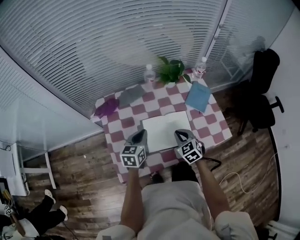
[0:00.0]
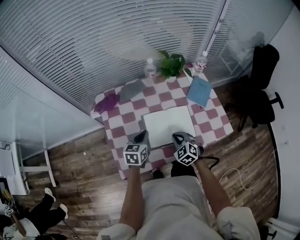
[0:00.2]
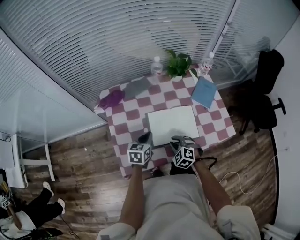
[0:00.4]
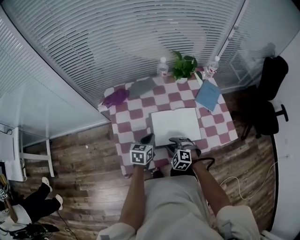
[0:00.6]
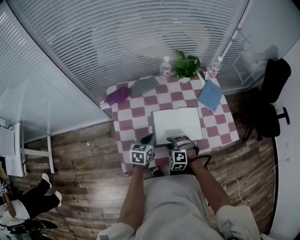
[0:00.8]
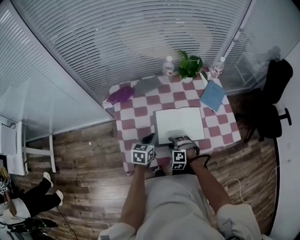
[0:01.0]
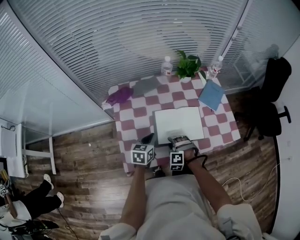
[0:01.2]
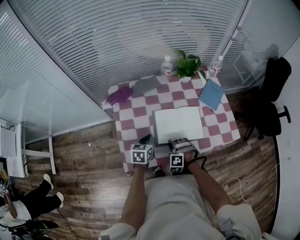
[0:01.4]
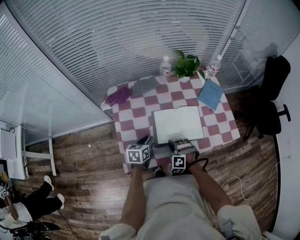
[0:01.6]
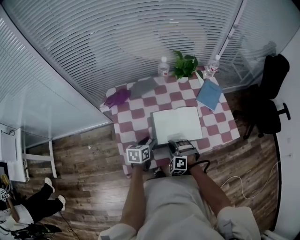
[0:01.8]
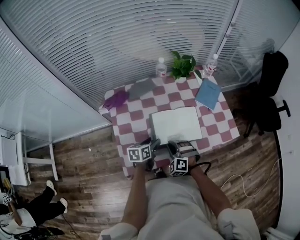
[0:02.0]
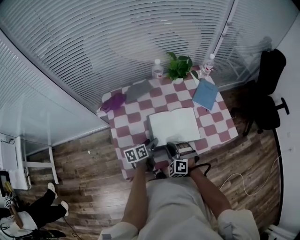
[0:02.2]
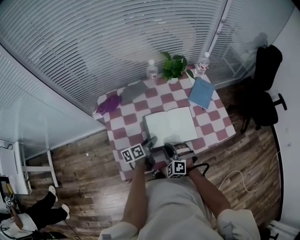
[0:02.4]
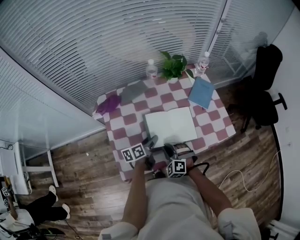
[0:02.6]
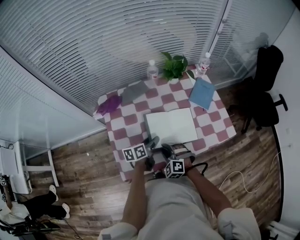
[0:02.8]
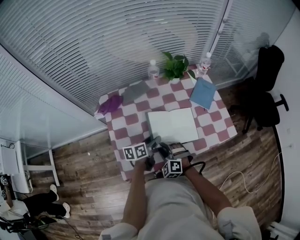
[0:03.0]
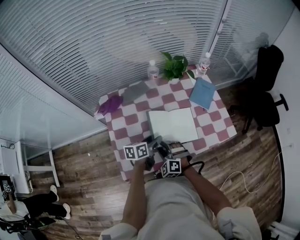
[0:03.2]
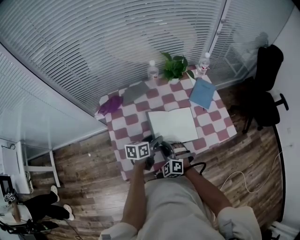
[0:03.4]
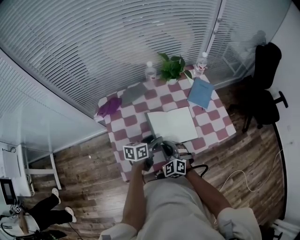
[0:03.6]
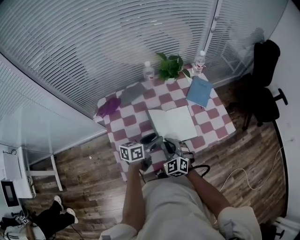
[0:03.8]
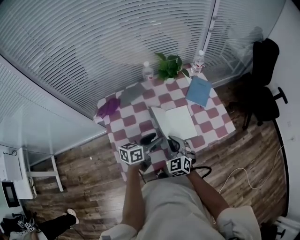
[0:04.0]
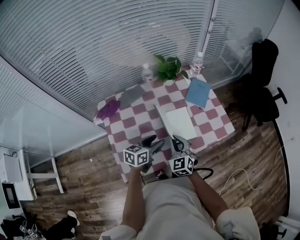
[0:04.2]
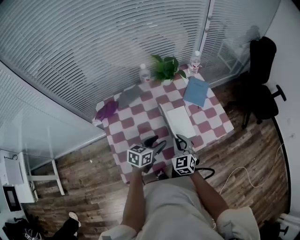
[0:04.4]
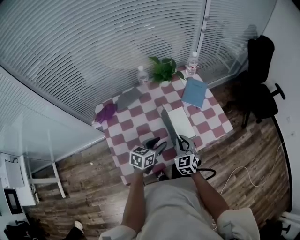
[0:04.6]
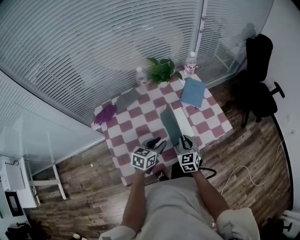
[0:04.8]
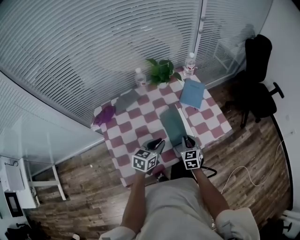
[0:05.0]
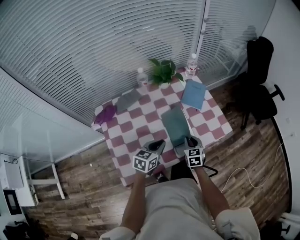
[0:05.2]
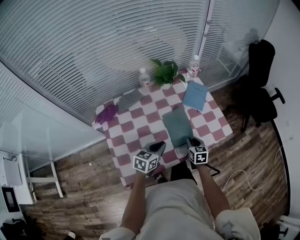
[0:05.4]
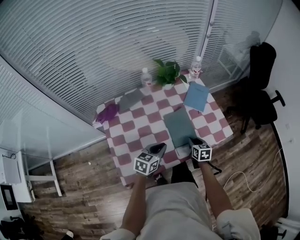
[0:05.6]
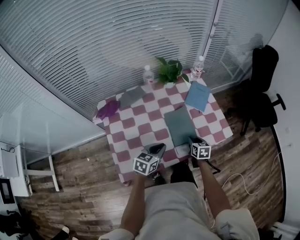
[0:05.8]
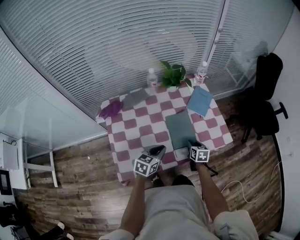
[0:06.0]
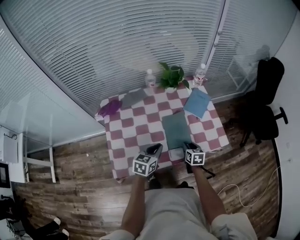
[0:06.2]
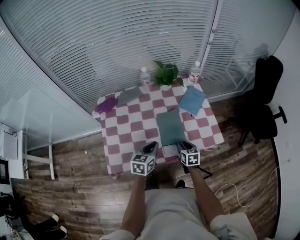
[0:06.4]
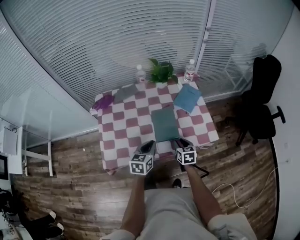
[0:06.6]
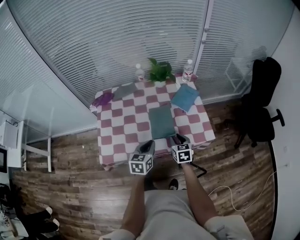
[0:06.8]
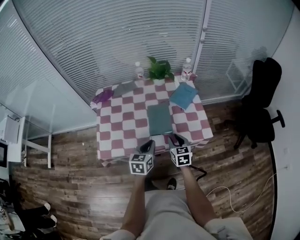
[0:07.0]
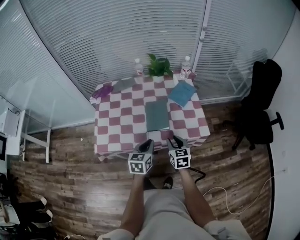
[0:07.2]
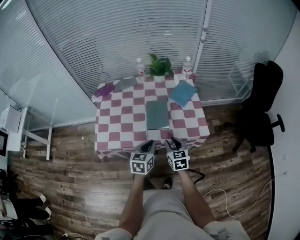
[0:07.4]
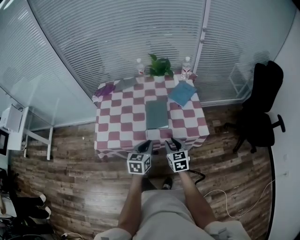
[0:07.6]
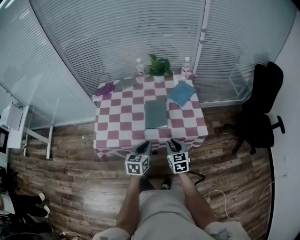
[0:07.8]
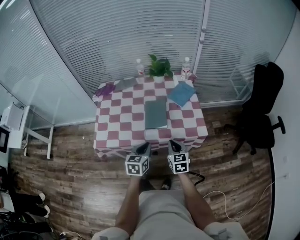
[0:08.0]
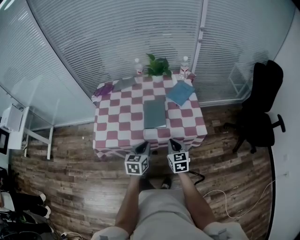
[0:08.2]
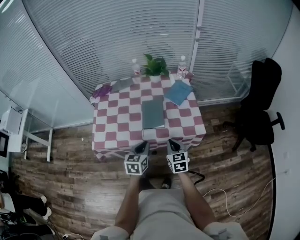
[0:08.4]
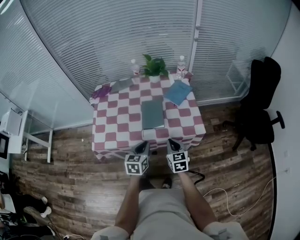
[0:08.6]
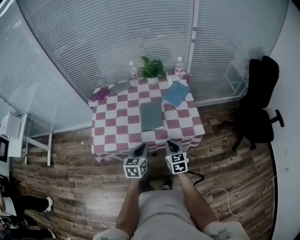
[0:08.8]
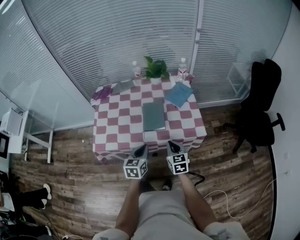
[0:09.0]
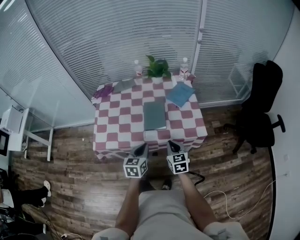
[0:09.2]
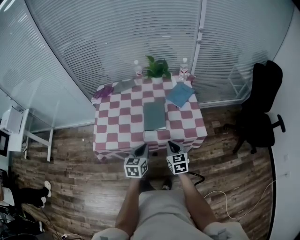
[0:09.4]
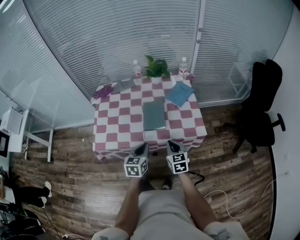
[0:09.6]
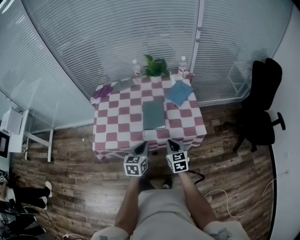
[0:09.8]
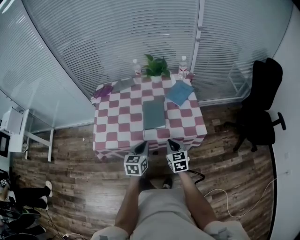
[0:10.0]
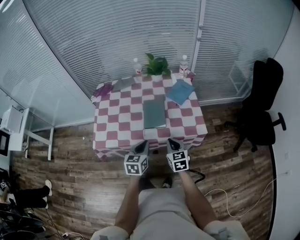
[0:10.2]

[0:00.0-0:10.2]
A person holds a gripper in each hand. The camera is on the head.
0.0 to 1.4 s: The left gripper heads downward and backward, covering roughly 10 cm. Meanwhile the right gripper is displaced downward, to the left and backward by some 20 cm, rolls counterclockwise, seen from behind, by about 60 degrees, and opens, then closes again.
1.4 to 3.0 s: The right gripper travels upward by roughly 5 cm, and rotates roughly 20 degrees; the left gripper heads to the right, covering roughly 5 cm, rotates approximately 30 degrees, and opens its fingers.
3.0 to 4.4 s: The left gripper heads to the right and upward, covering about 10 cm, and turns by about 30 degrees. The right gripper moves to the right, upward and forward, about 15 cm, rotates around the line of its fingers by approximately 40 degrees, clockwise from behind, and closes up.
4.4 to 5.8 s: The left gripper closes; the right gripper shifts about 15 cm downward, to the right and forward, rotates approximately 40 degrees, and opens its fingers.
5.8 to 7.2 s: The left gripper goes roughly 15 cm to the right and backward, and turns by approximately 30 degrees. The right gripper heads upward, backward and to the right, covering roughly 15 cm, and changes its angle by about 30 degrees.
7.2 to 8.8 s: The right gripper closes its fingers.
8.8 to 10.2 s: Both grippers stay about where they are.

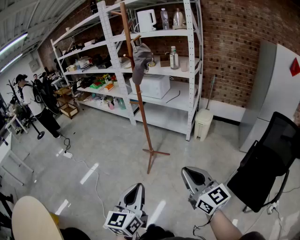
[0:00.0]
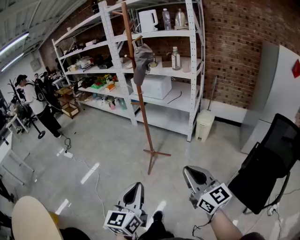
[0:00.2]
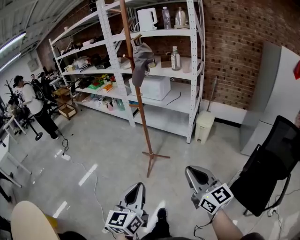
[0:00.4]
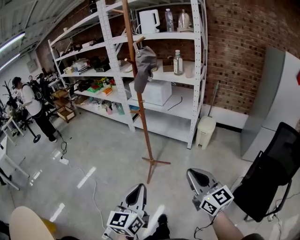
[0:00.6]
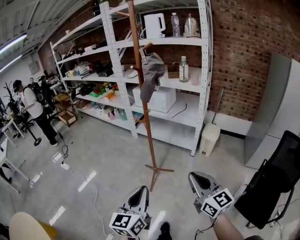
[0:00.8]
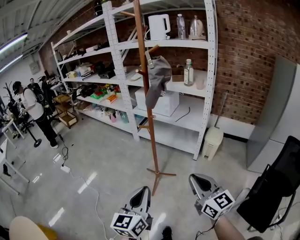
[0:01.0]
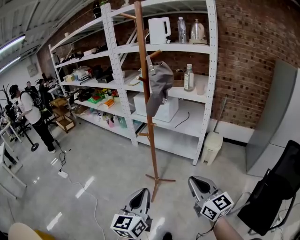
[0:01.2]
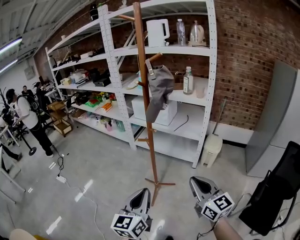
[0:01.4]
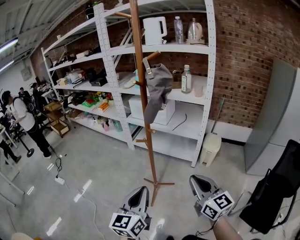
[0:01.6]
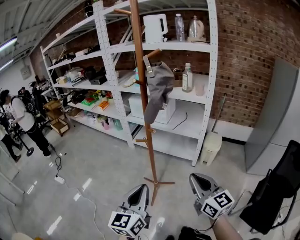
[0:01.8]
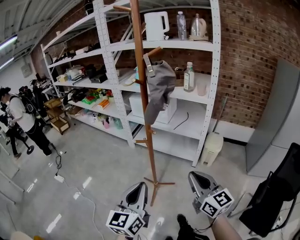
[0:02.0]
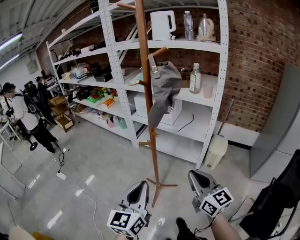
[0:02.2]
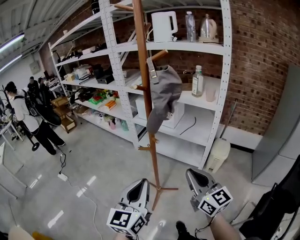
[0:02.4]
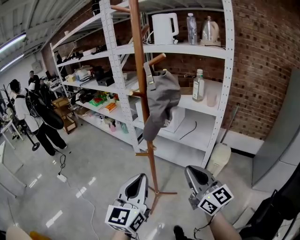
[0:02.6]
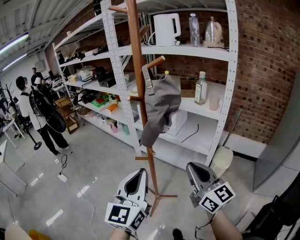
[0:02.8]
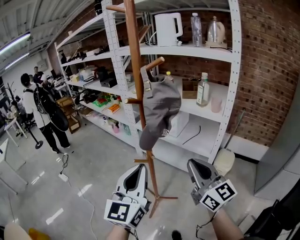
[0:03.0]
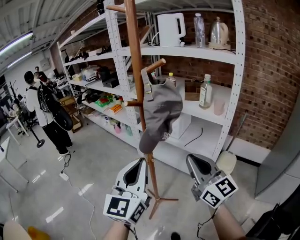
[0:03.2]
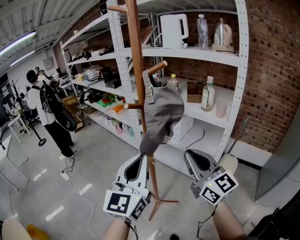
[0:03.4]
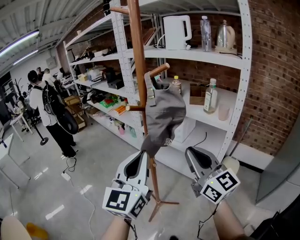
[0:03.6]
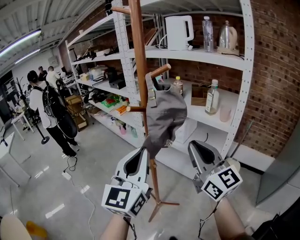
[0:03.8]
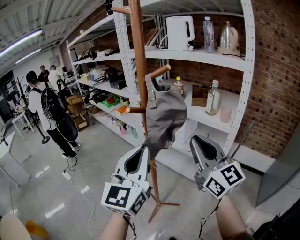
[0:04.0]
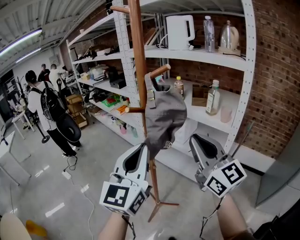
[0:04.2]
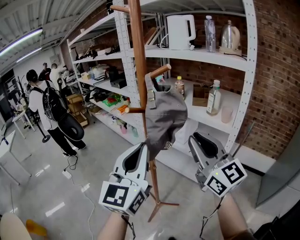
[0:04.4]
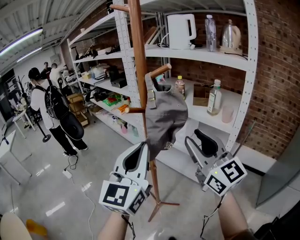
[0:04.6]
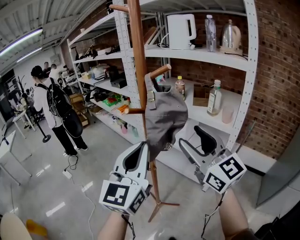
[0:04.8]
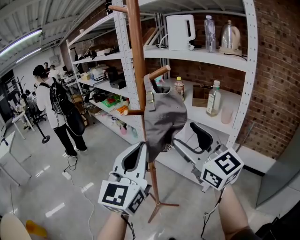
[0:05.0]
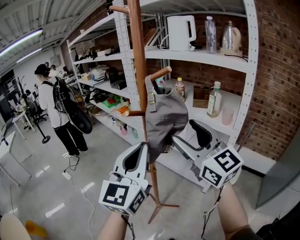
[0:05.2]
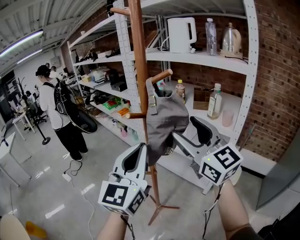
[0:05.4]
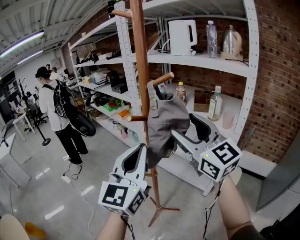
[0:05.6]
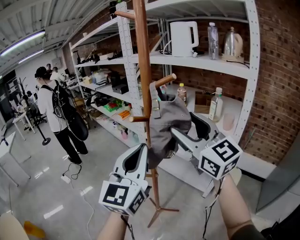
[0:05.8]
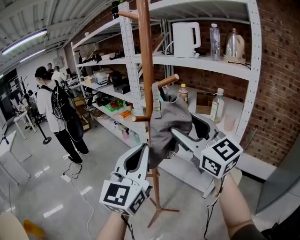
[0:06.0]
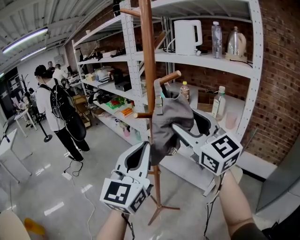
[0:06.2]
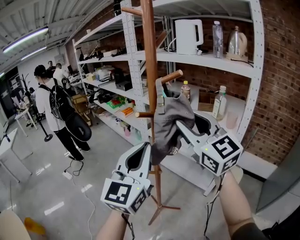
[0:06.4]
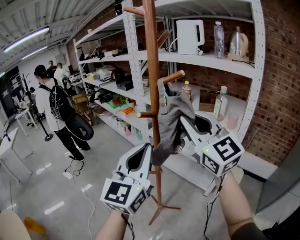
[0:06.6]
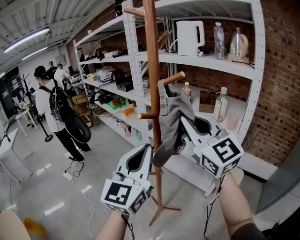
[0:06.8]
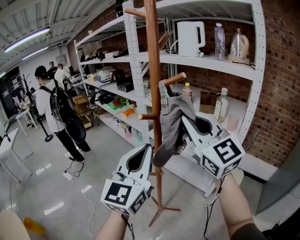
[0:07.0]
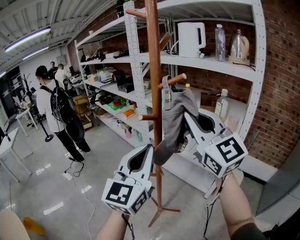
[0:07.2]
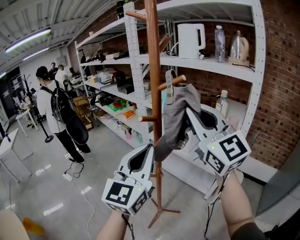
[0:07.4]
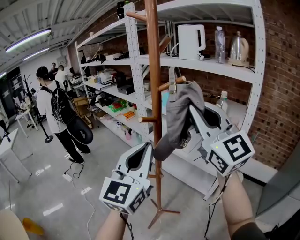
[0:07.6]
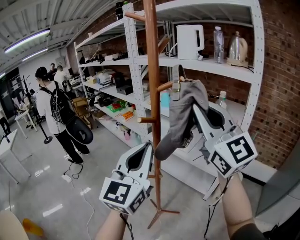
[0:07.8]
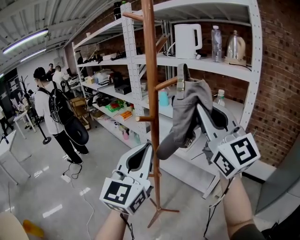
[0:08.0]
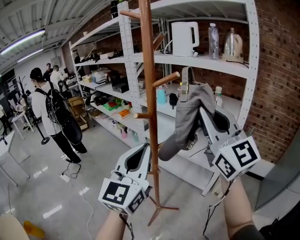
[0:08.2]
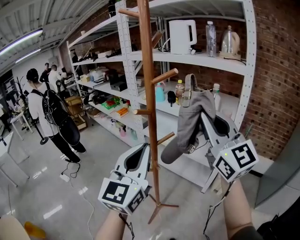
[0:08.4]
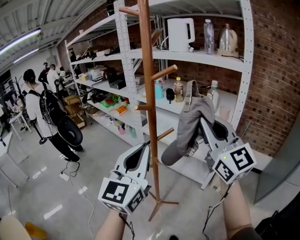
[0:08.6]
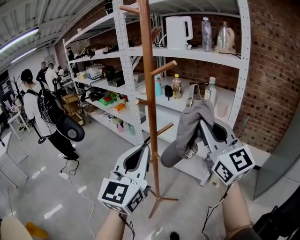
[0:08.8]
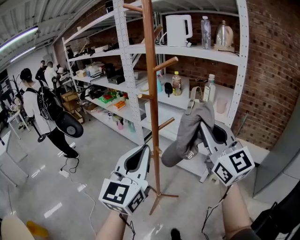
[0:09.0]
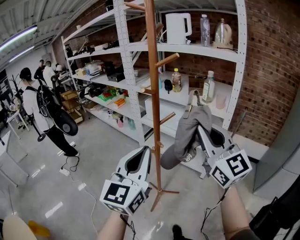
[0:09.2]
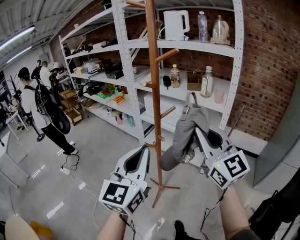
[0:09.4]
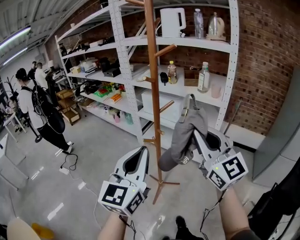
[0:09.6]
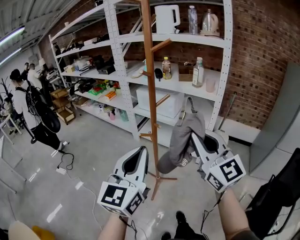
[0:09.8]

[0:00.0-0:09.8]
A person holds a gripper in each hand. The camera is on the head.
0.0 to 1.4 s: Both grippers move forward, approximately 30 cm.
1.4 to 2.8 s: The right gripper moves forward, about 20 cm, while the left gripper heads forward and upward, covering about 20 cm.
2.8 to 4.2 s: Both grippers travel together upward and forward, about 15 cm.
4.2 to 5.6 s: The right gripper shifts some 10 cm upward and forward, and opens its fingers.
5.6 to 7.0 s: The right gripper closes up.
7.0 to 8.4 s: The right gripper moves to the right, roughly 5 cm.
8.4 to 9.8 s: The grippers both shift backward and downward by about 20 cm.

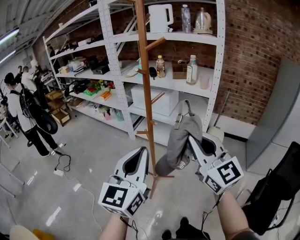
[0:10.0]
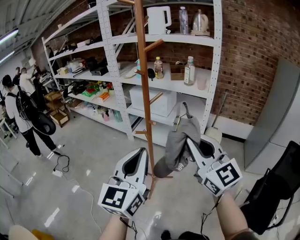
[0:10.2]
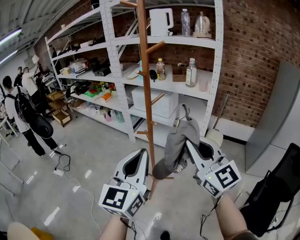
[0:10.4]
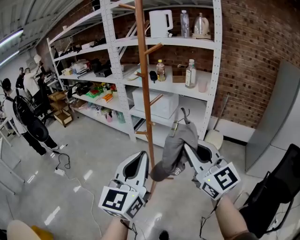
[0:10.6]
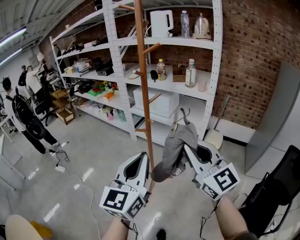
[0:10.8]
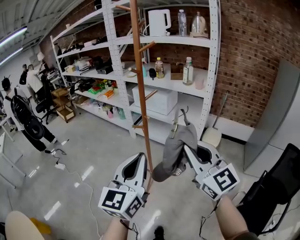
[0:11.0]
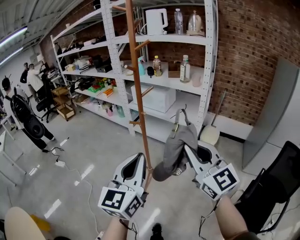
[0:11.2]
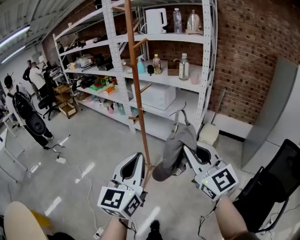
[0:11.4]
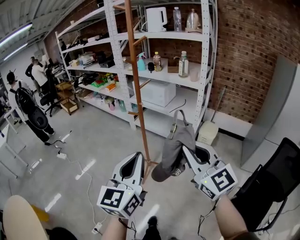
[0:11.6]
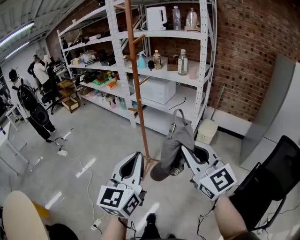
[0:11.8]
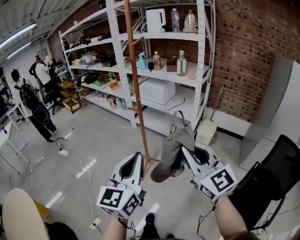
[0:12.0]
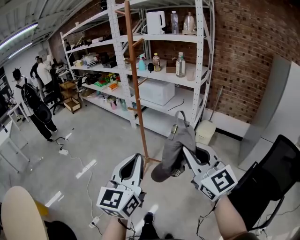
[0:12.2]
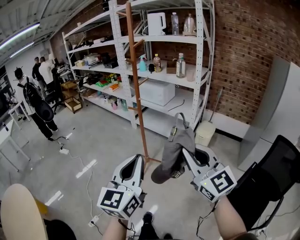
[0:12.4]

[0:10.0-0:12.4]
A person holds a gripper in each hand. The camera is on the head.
10.0 to 11.2 s: Both grippers travel together backward and to the right, some 10 cm.
11.2 to 12.4 s: The grippers both shift backward by approximately 15 cm.

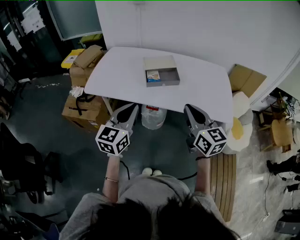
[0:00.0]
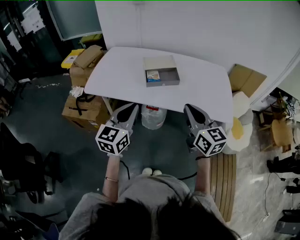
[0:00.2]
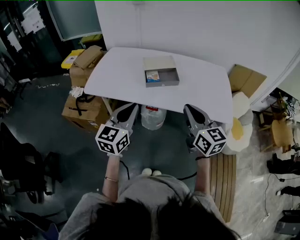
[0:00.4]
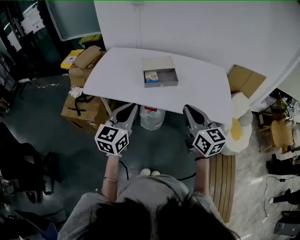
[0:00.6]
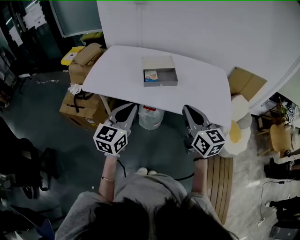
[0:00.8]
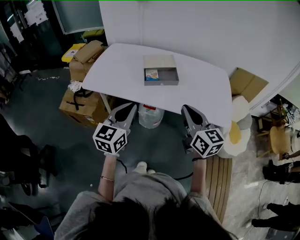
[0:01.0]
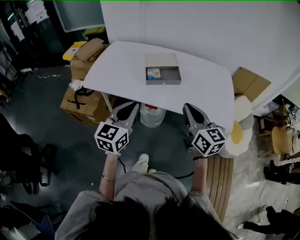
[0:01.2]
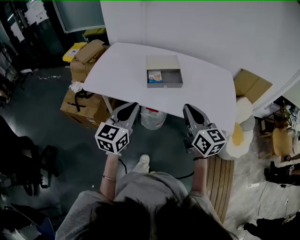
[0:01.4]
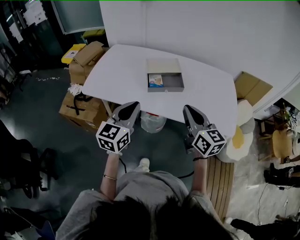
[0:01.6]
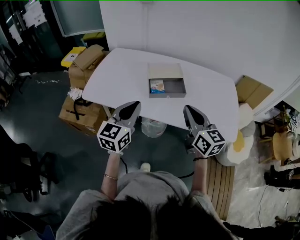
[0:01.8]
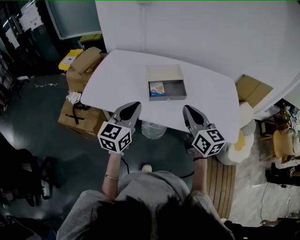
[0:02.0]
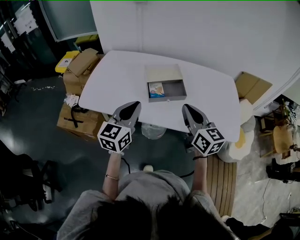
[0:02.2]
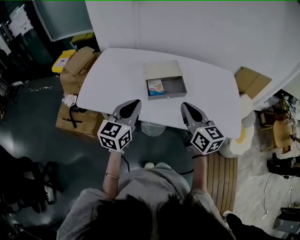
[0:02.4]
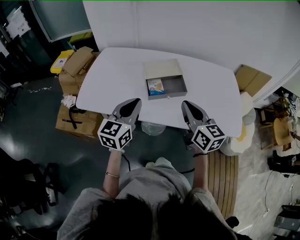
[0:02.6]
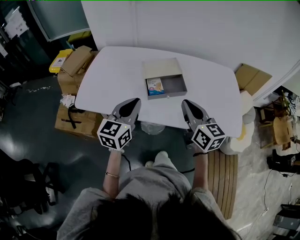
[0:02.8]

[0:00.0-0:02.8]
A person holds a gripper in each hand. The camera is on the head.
0.0 to 1.4 s: The right gripper heads forward, covering approximately 5 cm.
1.4 to 2.8 s: Both grippers travel together forward, approximately 15 cm.
